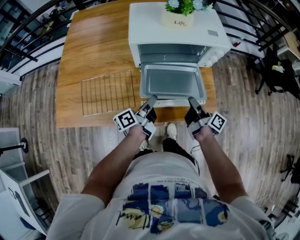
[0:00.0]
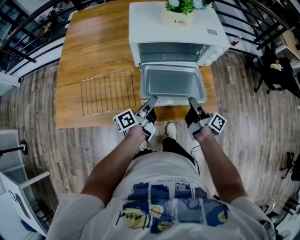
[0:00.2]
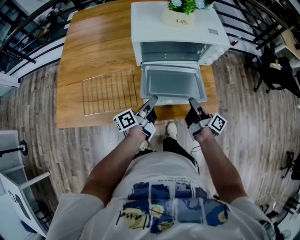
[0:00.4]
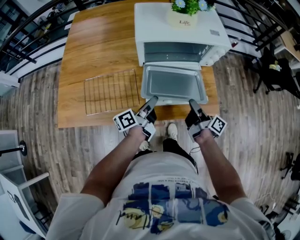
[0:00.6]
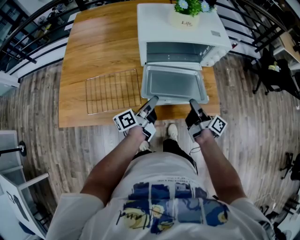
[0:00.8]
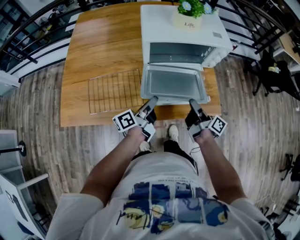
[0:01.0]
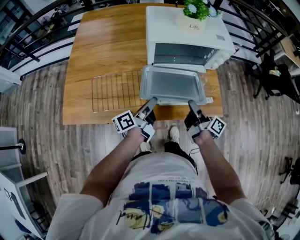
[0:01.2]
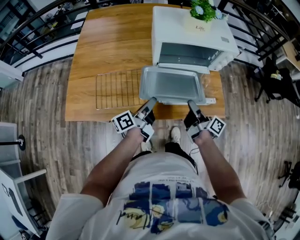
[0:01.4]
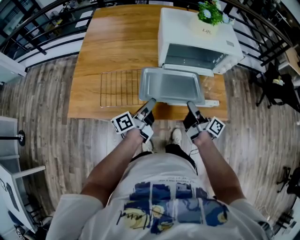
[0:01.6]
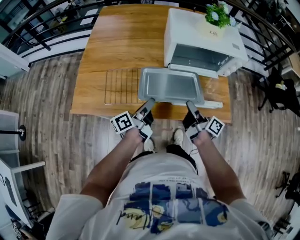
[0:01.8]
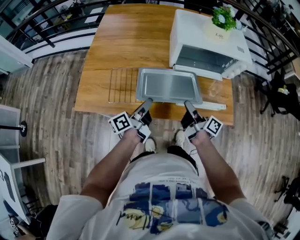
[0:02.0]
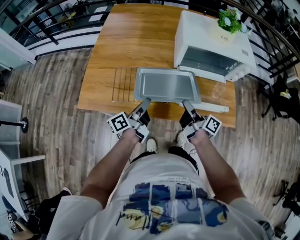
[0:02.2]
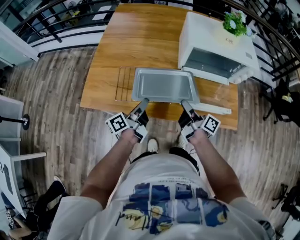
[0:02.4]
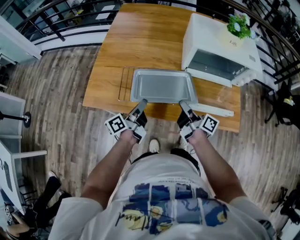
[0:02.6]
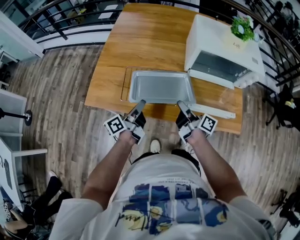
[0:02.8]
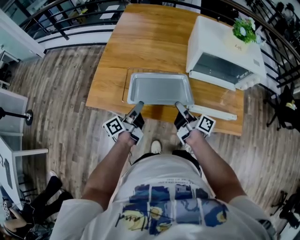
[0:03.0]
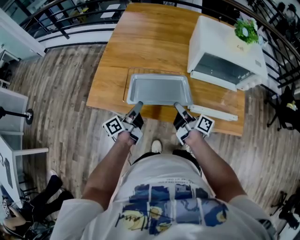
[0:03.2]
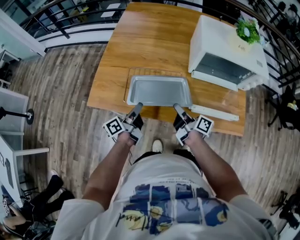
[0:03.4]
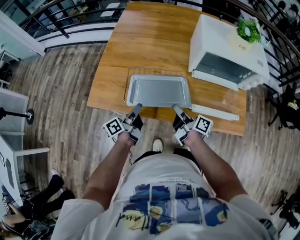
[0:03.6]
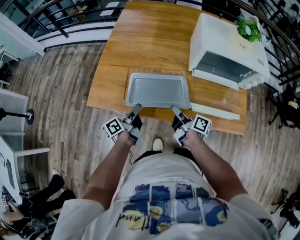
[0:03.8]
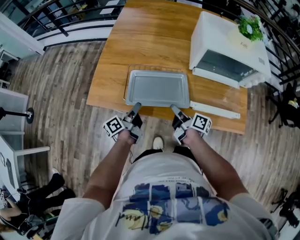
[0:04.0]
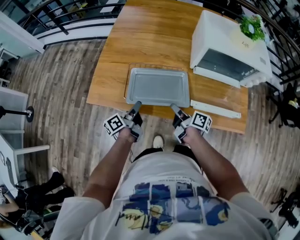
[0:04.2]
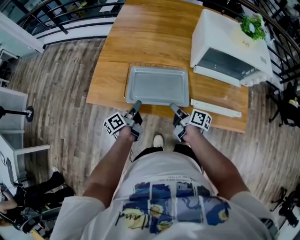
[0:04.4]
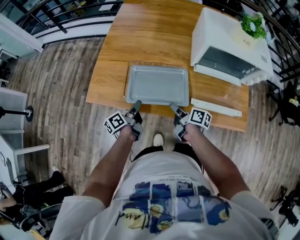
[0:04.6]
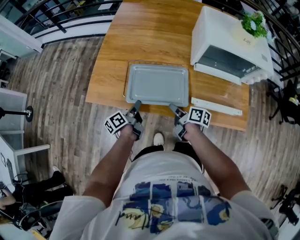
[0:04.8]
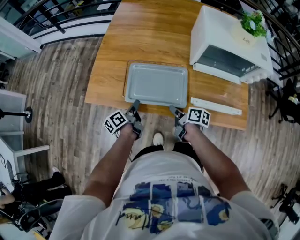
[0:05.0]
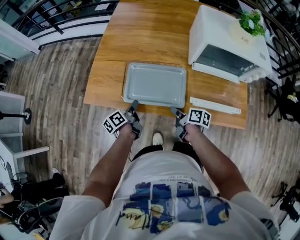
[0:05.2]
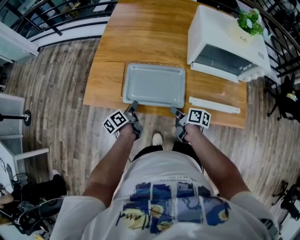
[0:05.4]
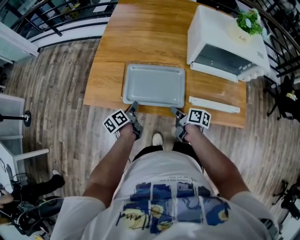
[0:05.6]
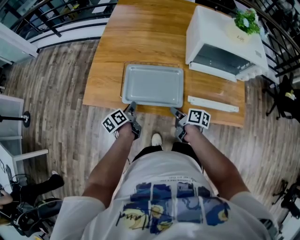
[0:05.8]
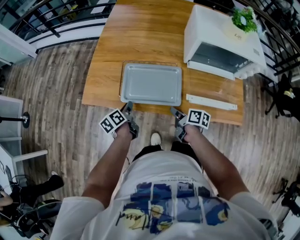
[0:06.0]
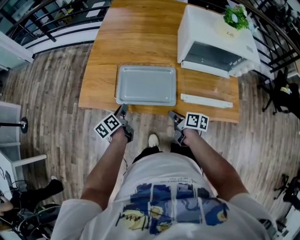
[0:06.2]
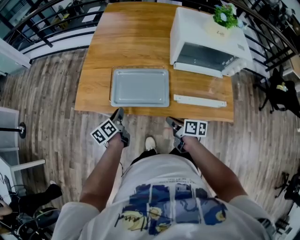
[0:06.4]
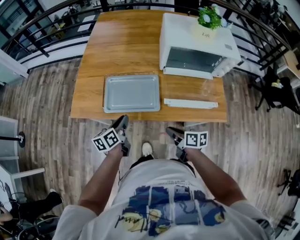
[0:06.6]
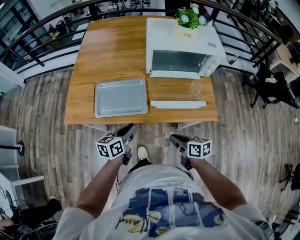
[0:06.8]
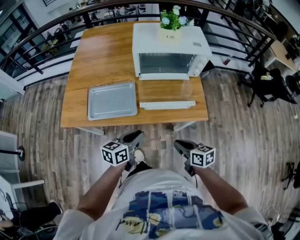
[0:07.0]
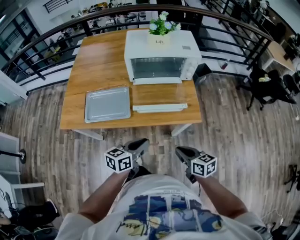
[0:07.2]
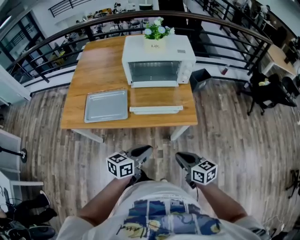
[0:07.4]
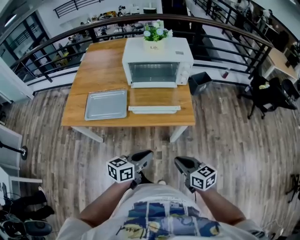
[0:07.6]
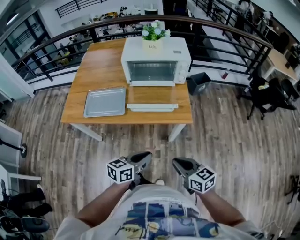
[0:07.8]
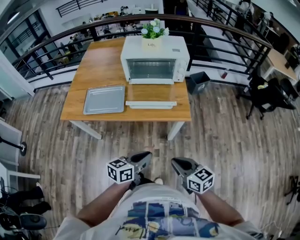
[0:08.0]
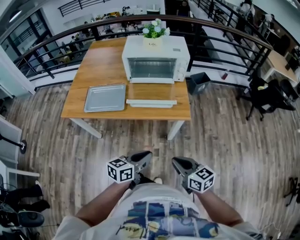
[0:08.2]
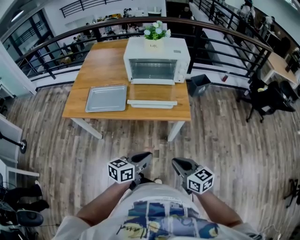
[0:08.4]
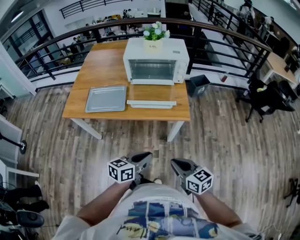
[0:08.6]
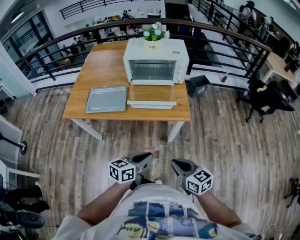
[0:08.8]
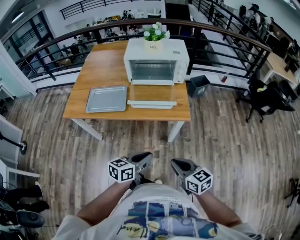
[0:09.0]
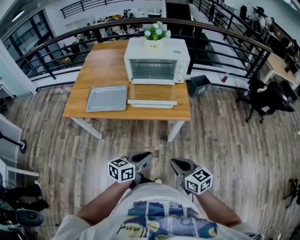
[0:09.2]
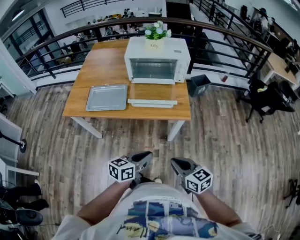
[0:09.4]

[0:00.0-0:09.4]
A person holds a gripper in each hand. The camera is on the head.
0:00.0 to 0:01.6: The two grippers go roughly 15 cm to the left and backward.
0:01.6 to 0:03.2: The two grippers go approximately 20 cm to the left.
0:03.2 to 0:04.8: Both grippers travel together downward, roughly 10 cm. The right gripper rotates about 20 degrees, while the left gripper swivels approximately 20 degrees.
0:04.8 to 0:06.2: The right gripper travels backward by some 5 cm; the left gripper changes its angle by some 20 degrees.
0:06.2 to 0:07.8: The pair of grippers is taken about 50 cm. The right gripper twists some 40 degrees counterclockwise, seen from behind. Meanwhile the left gripper rotates approximately 50 degrees.
0:07.8 to 0:09.4: The grippers move only a little.

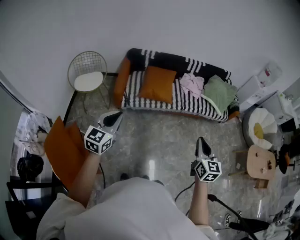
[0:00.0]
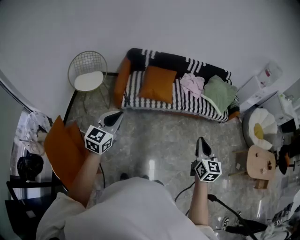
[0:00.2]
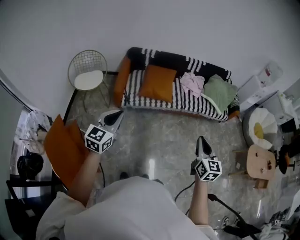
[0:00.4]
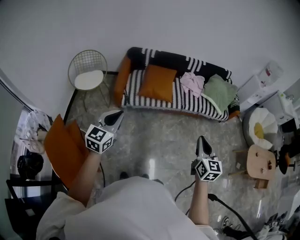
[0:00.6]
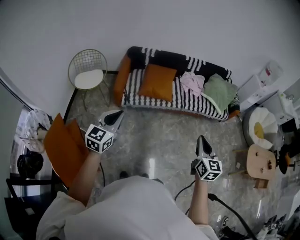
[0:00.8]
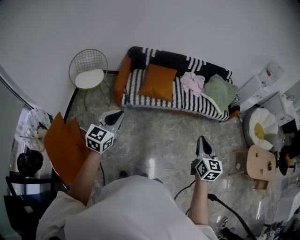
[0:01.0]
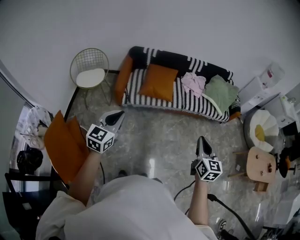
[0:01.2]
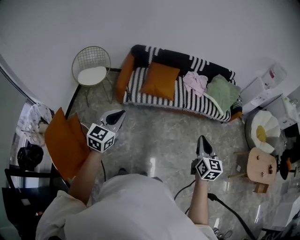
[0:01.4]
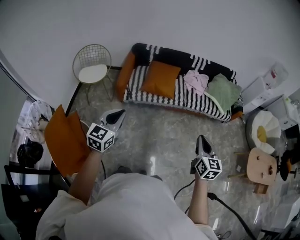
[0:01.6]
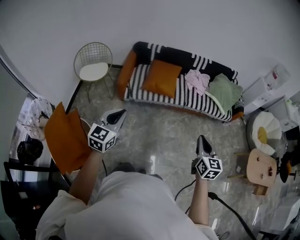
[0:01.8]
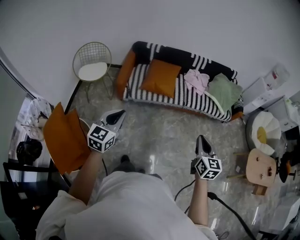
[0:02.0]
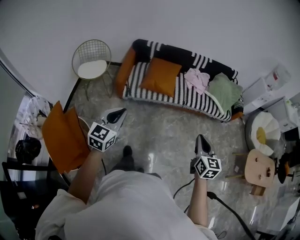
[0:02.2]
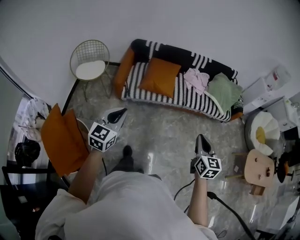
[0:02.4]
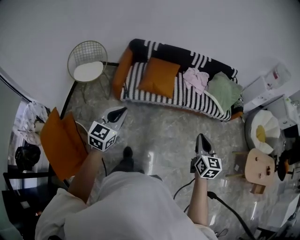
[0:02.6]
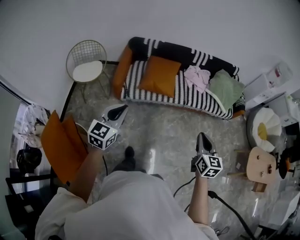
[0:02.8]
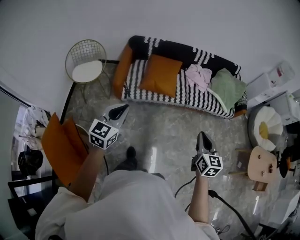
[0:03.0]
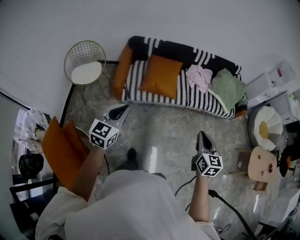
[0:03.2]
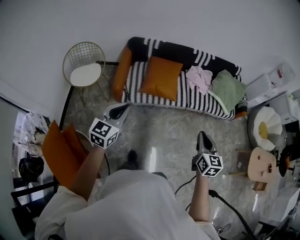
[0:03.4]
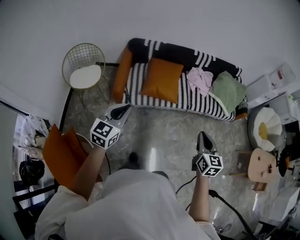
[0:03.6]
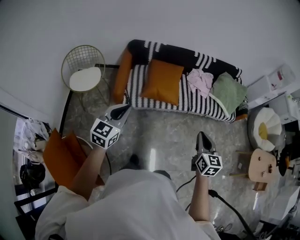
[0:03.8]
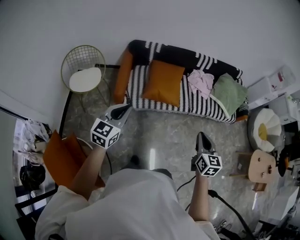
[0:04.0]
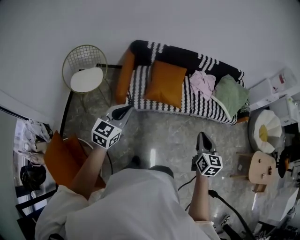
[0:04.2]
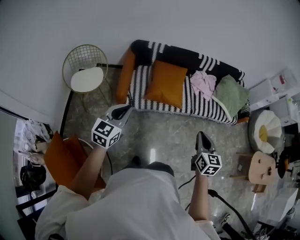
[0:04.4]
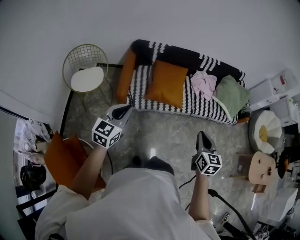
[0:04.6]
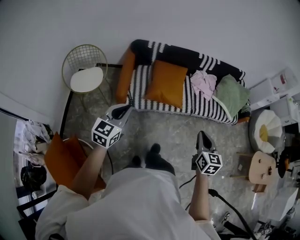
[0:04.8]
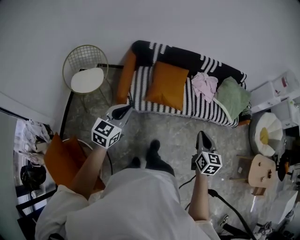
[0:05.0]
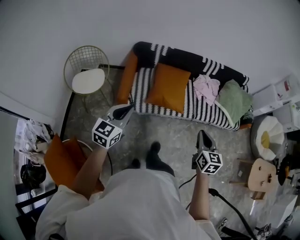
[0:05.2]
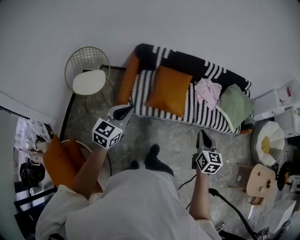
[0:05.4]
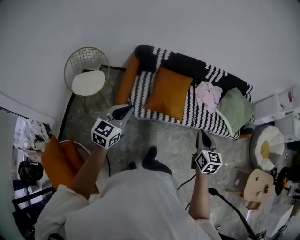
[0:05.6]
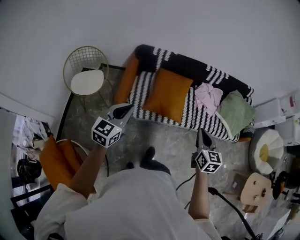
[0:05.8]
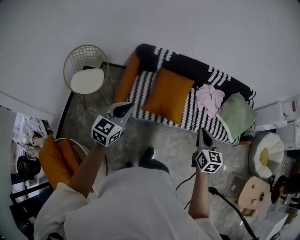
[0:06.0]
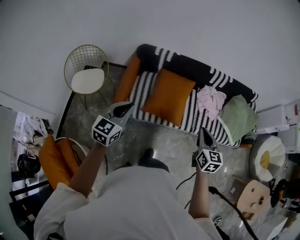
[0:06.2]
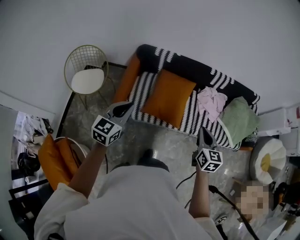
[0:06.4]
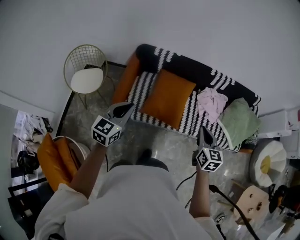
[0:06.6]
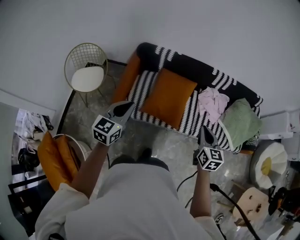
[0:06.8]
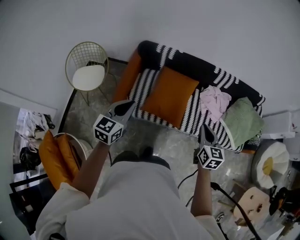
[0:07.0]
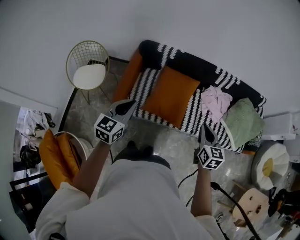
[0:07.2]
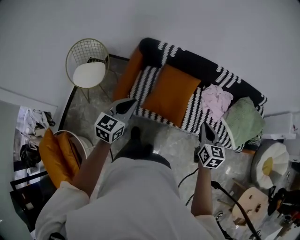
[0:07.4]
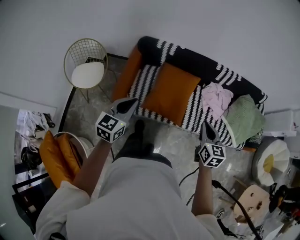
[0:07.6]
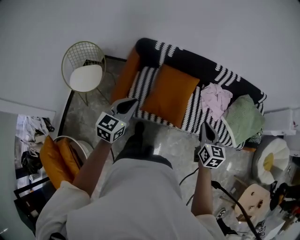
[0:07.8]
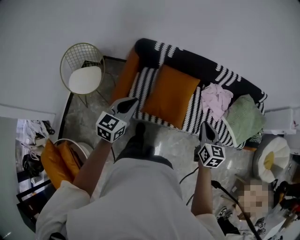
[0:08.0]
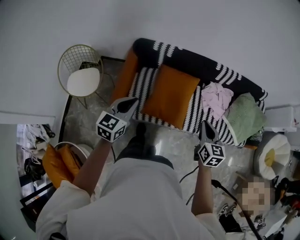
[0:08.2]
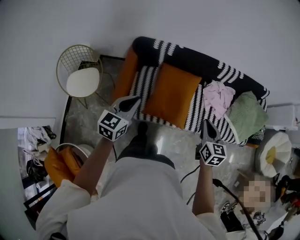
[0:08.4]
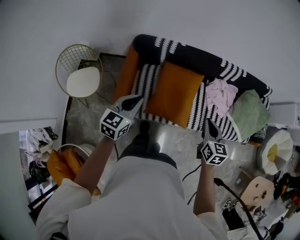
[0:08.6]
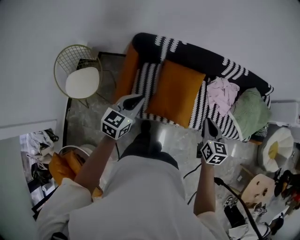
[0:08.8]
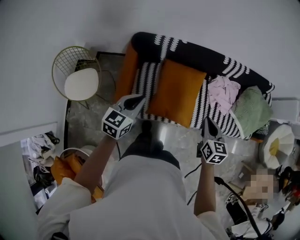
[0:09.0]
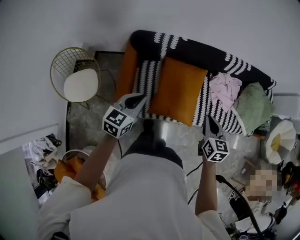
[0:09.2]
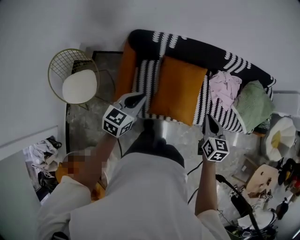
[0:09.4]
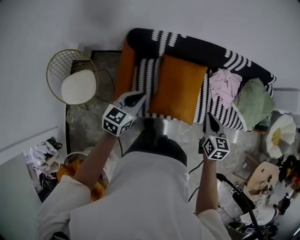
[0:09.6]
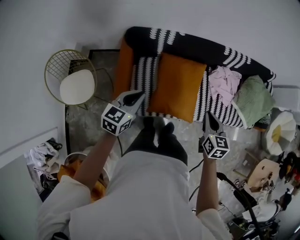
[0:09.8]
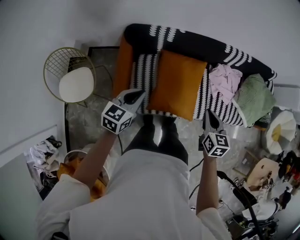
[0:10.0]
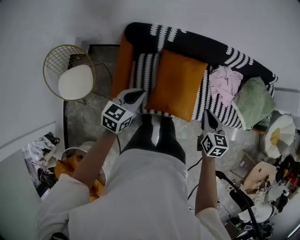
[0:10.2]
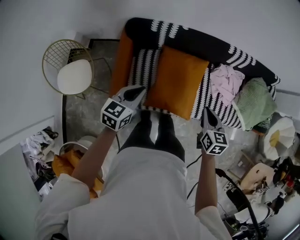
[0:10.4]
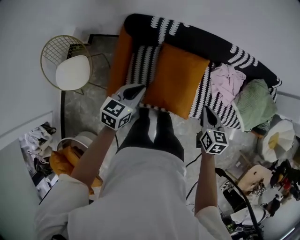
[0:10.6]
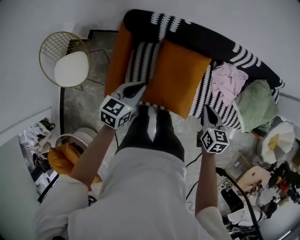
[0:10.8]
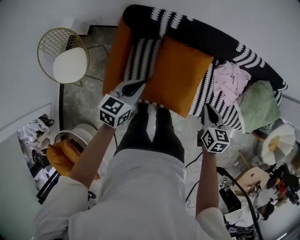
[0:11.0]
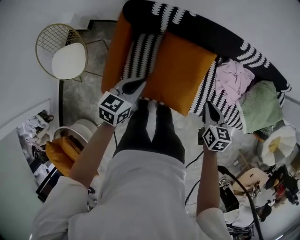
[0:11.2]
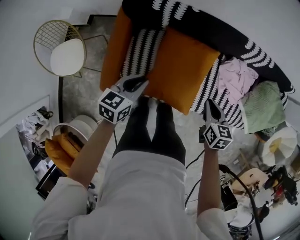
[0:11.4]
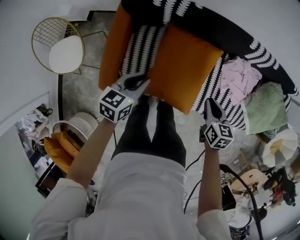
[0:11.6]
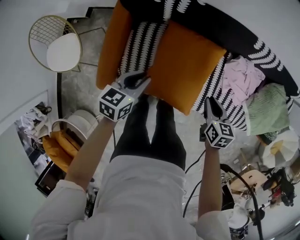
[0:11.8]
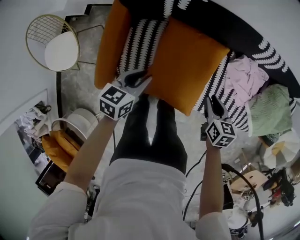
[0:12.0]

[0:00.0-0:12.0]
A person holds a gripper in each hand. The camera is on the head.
0:00.0 to 0:01.6: Both grippers move to the right, some 5 cm.
0:01.6 to 0:03.0: The two grippers go approximately 15 cm forward.
0:03.0 to 0:04.4: The two grippers go roughly 20 cm to the left and forward.
0:04.4 to 0:06.0: The two grippers go about 25 cm forward.
0:06.0 to 0:07.6: The right gripper moves forward, some 15 cm. Meanwhile the left gripper moves forward and to the right, about 15 cm.
0:07.6 to 0:09.0: The grippers both shift forward, to the left and downward by some 20 cm.
0:09.0 to 0:10.4: The left gripper is displaced downward and forward by approximately 10 cm, while the right gripper travels forward and downward by approximately 10 cm.
0:10.4 to 0:12.0: The right gripper travels downward and forward by about 25 cm. The left gripper heads downward, covering some 20 cm.

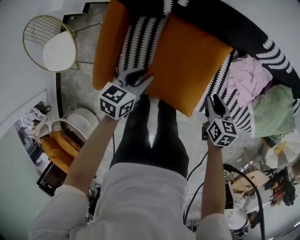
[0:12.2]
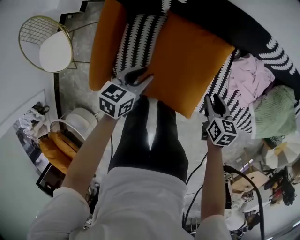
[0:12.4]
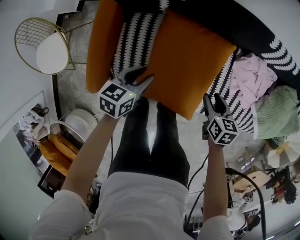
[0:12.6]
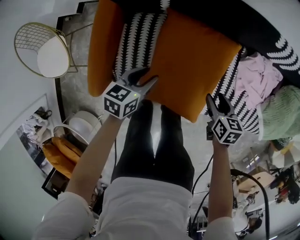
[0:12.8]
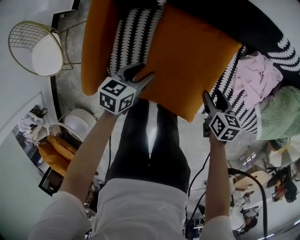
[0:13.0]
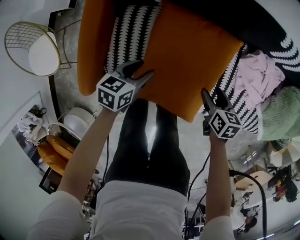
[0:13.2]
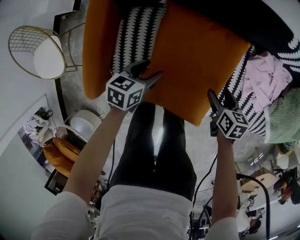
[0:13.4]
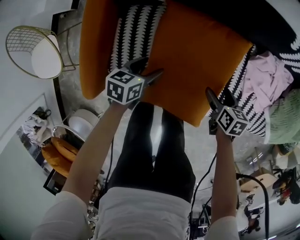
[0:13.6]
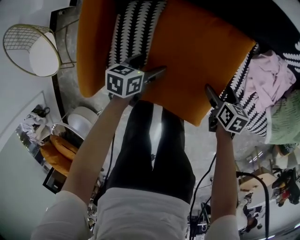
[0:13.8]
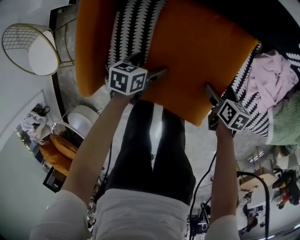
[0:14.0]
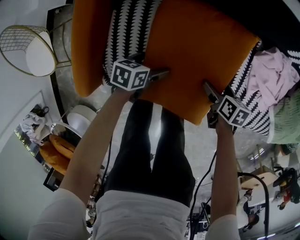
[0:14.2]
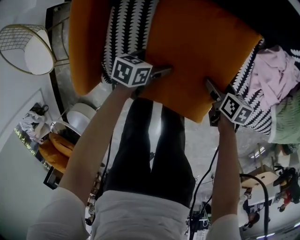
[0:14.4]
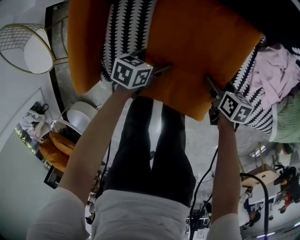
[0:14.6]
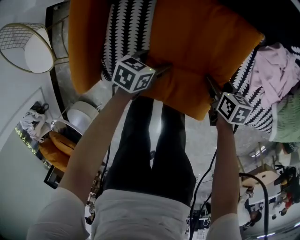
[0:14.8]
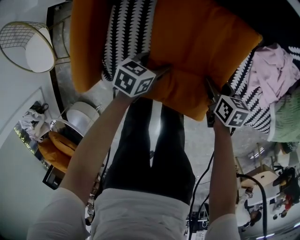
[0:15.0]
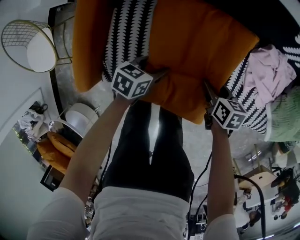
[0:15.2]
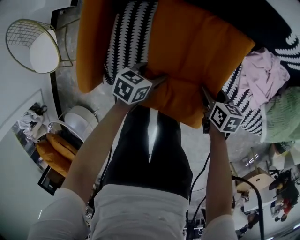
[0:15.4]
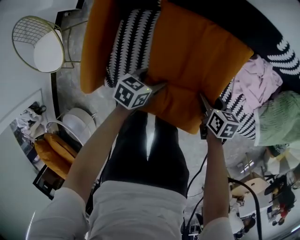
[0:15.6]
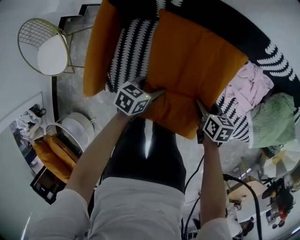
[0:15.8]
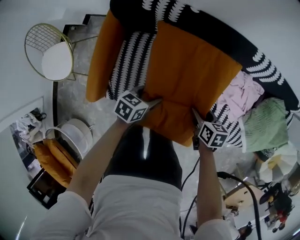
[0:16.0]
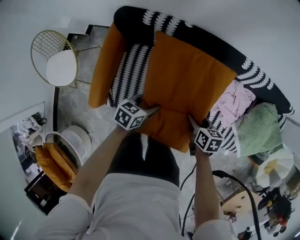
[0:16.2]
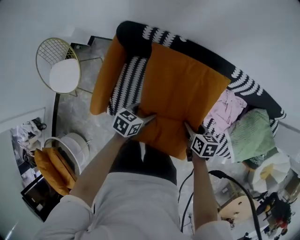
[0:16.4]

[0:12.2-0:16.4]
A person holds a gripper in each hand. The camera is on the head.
0:12.2 to 0:13.6: Both grippers travel together downward, approximately 20 cm. The left gripper opens its fingers. The right gripper opens.
0:13.6 to 0:15.0: The left gripper travels downward by roughly 5 cm, and opens and closes again. The right gripper closes.
0:15.0 to 0:16.4: The grippers both shift upward by roughly 30 cm.
